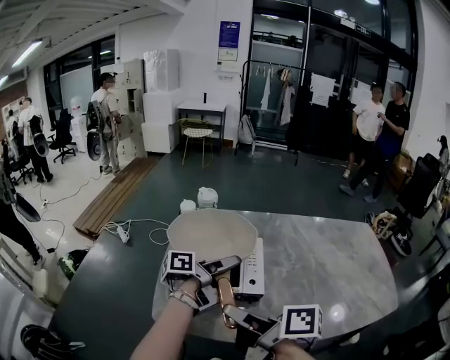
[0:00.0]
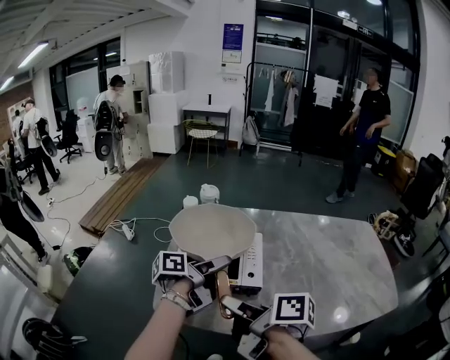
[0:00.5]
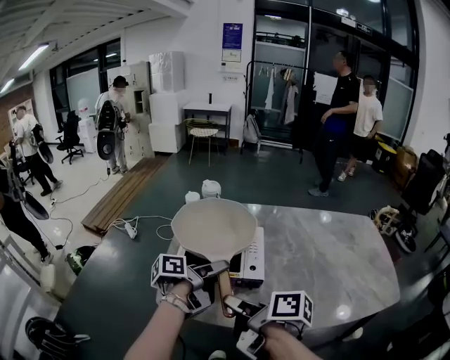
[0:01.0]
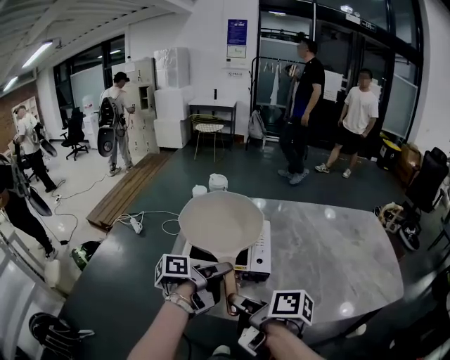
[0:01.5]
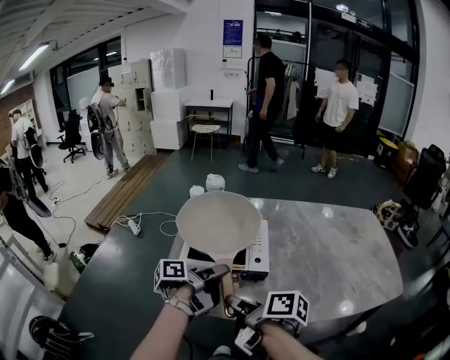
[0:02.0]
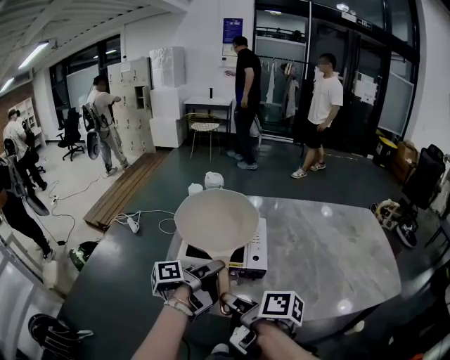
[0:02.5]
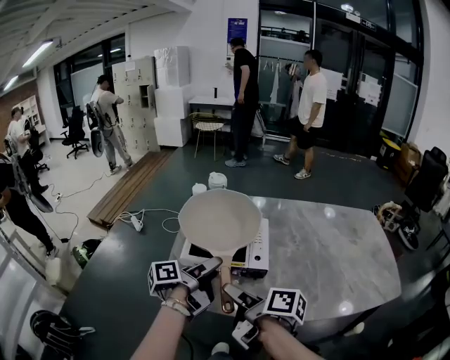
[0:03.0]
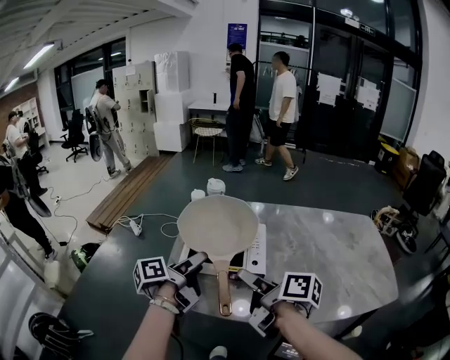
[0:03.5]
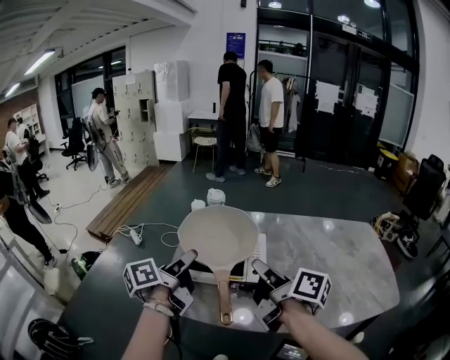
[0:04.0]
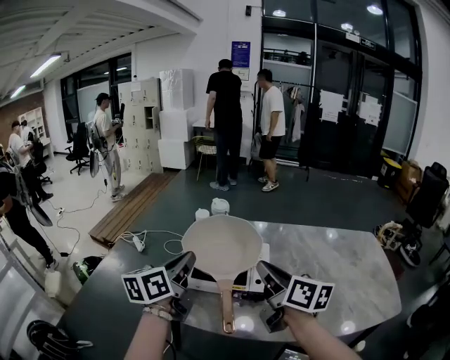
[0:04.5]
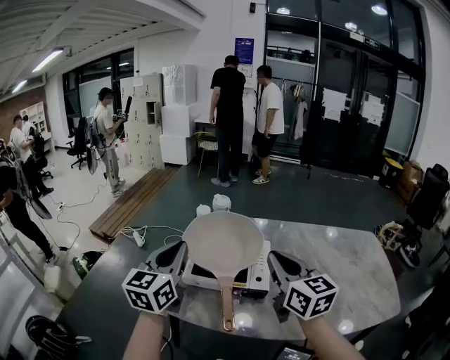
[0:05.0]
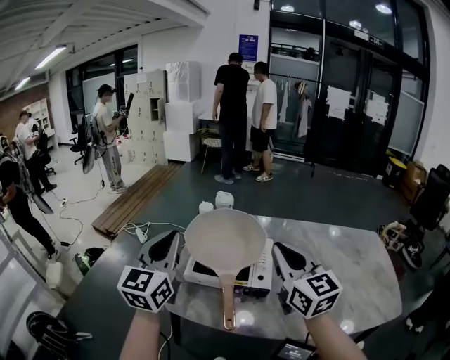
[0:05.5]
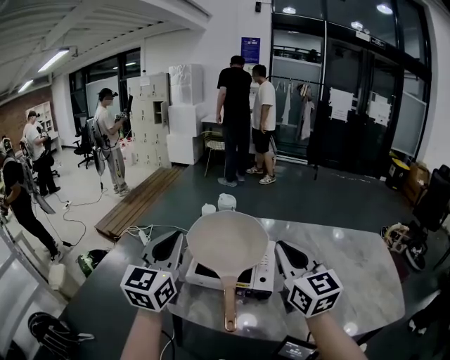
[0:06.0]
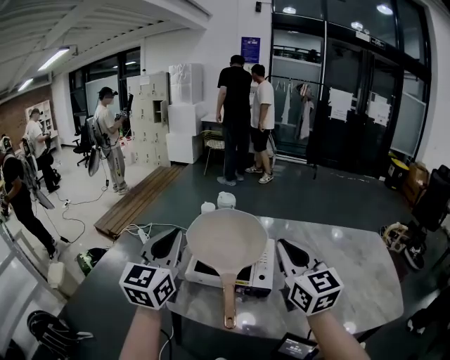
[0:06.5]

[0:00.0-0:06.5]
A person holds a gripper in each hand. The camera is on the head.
0:00.0 to 0:02.0: The right gripper travels downward by about 10 cm.
0:02.0 to 0:04.5: The right gripper moves upward, roughly 15 cm, rotates about 40 degrees, and closes up.
0:04.5 to 0:06.5: The right gripper goes approximately 5 cm upward, and rolls counterclockwise, seen from behind, by about 40 degrees.

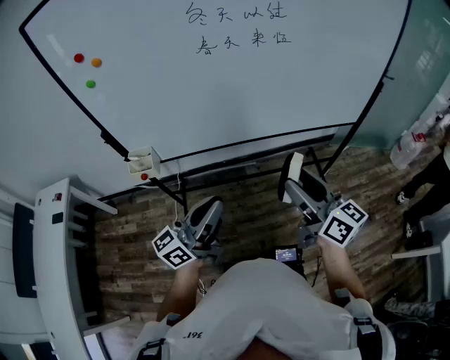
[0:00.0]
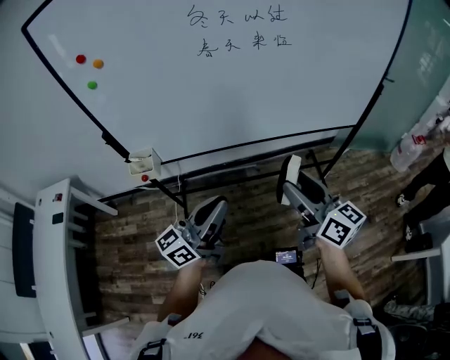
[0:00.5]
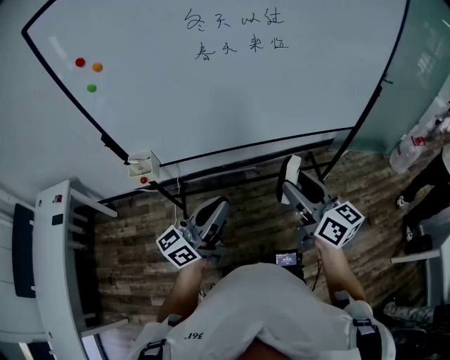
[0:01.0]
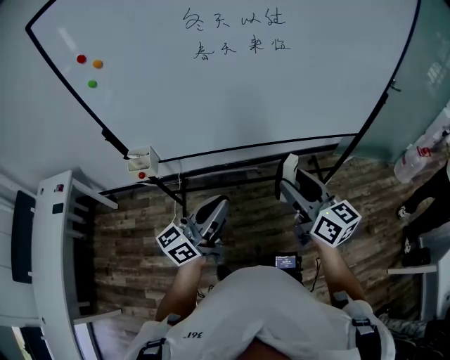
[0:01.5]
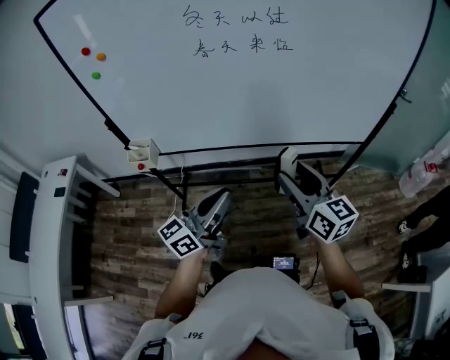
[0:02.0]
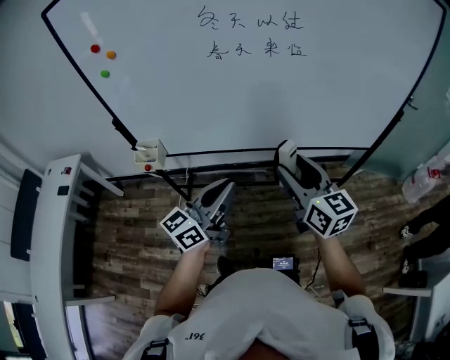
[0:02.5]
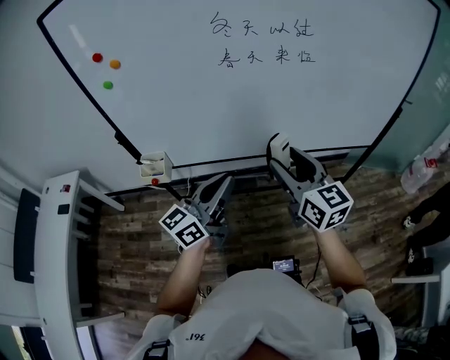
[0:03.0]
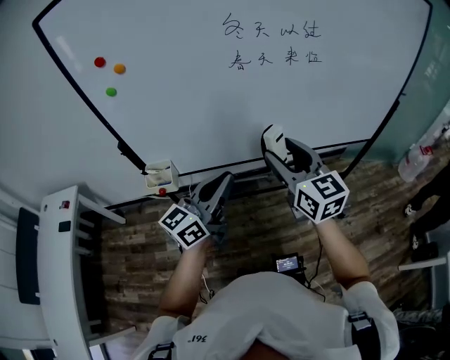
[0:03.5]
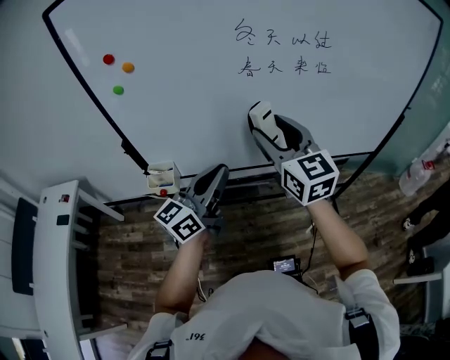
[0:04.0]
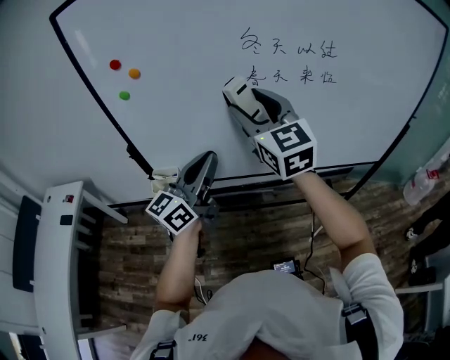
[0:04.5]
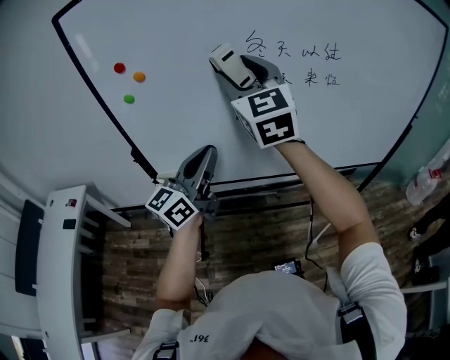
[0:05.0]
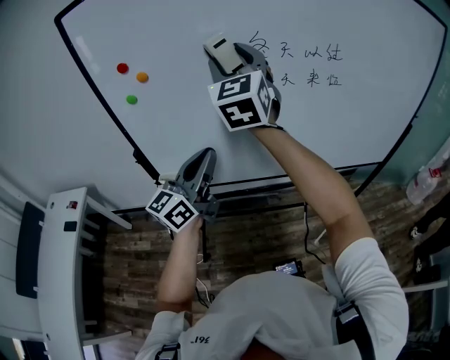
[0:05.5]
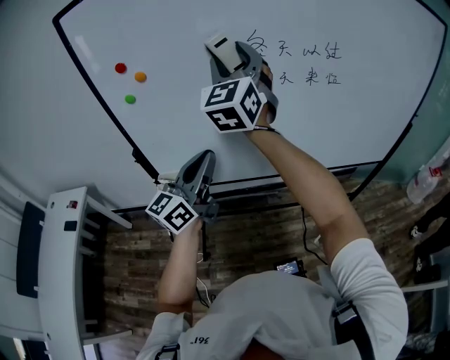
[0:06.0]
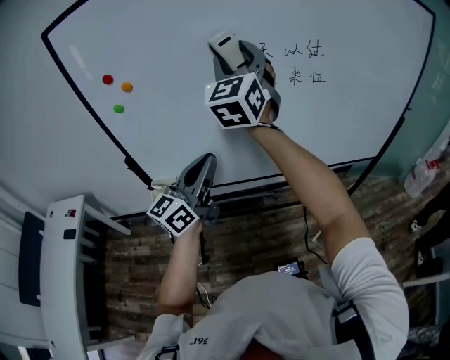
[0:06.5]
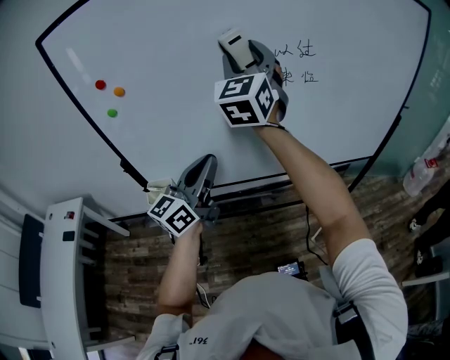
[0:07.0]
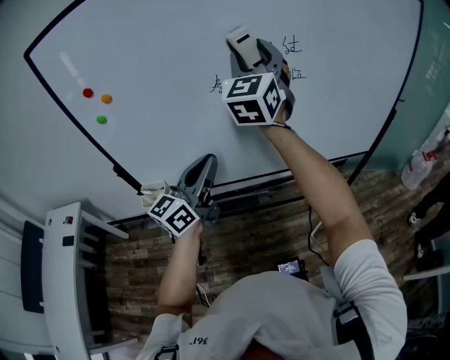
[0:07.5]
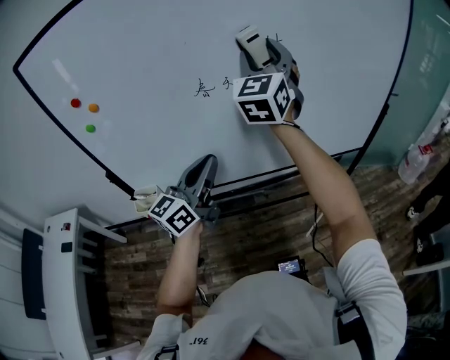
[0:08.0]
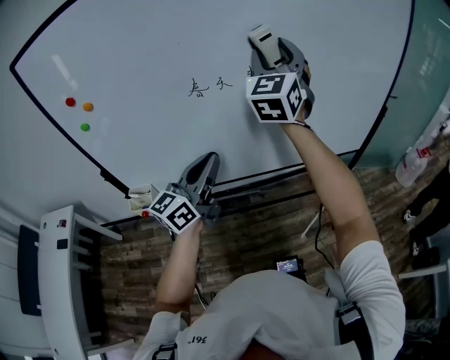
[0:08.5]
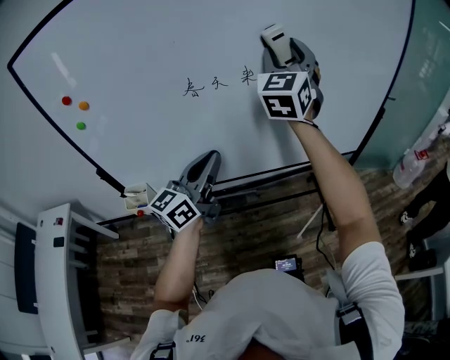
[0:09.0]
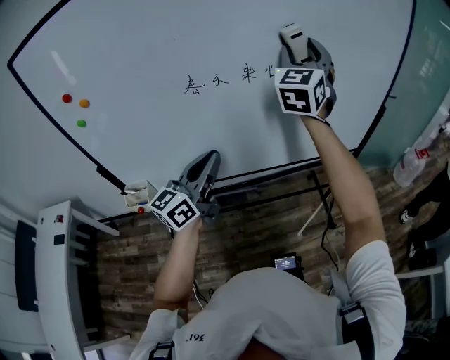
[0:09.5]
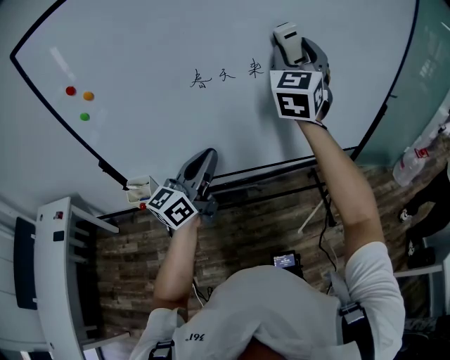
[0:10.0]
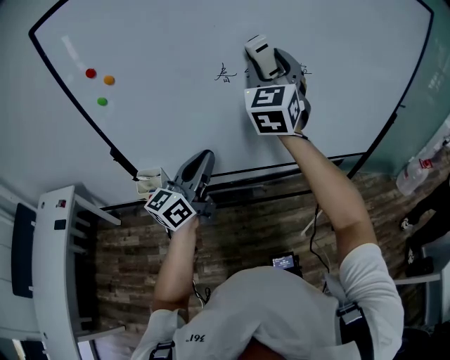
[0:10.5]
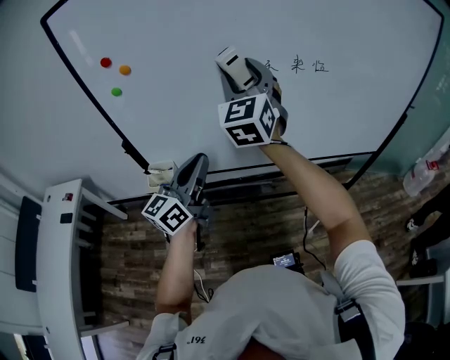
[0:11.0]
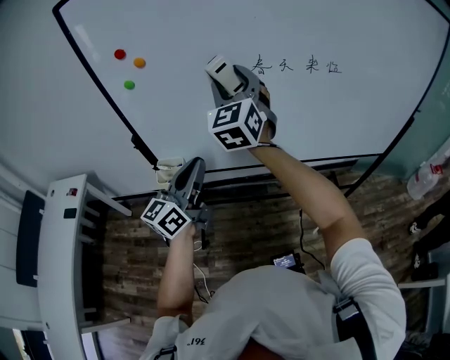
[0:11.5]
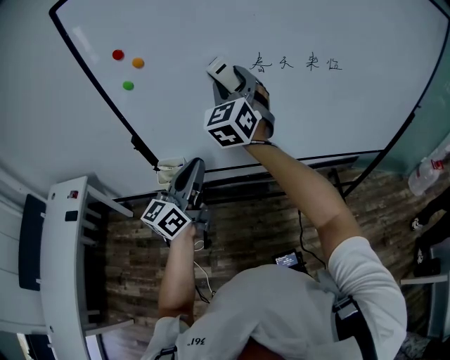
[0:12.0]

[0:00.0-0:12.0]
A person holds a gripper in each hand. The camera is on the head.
0:00.0 to 0:02.0: The right gripper is displaced forward by about 5 cm. Meanwhile the left gripper heads to the right, covering some 10 cm.
0:02.0 to 0:04.0: The right gripper is displaced to the left, upward and forward by some 25 cm, and changes its angle by roughly 20 degrees. Meanwhile the left gripper heads to the left, forward and upward, covering approximately 20 cm.
0:04.0 to 0:06.0: The left gripper goes about 5 cm to the left; the right gripper goes approximately 25 cm upward, to the left and forward, and swivels about 40 degrees.
0:06.0 to 0:08.0: The right gripper is displaced to the right by some 20 cm, while the left gripper goes about 15 cm to the right and forward.
0:08.0 to 0:10.0: The right gripper travels to the right by about 5 cm.
0:10.0 to 0:12.0: The right gripper heads to the left, covering roughly 30 cm, and turns by about 20 degrees; the left gripper goes approximately 20 cm to the left and backward.

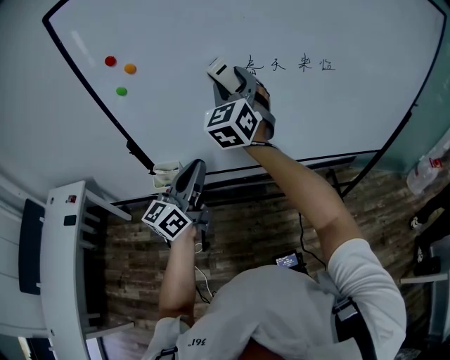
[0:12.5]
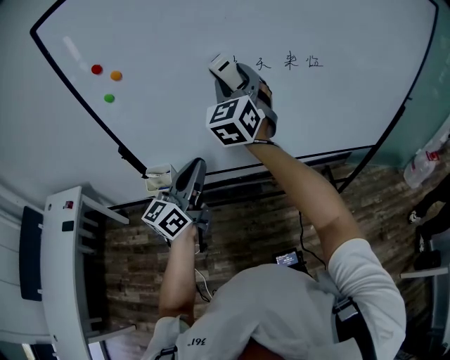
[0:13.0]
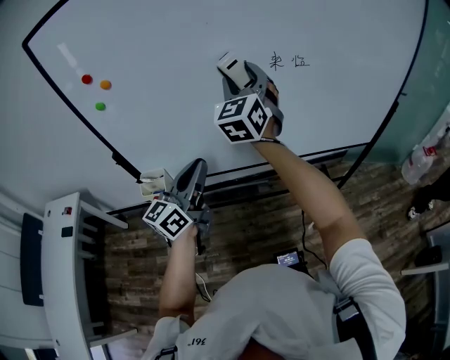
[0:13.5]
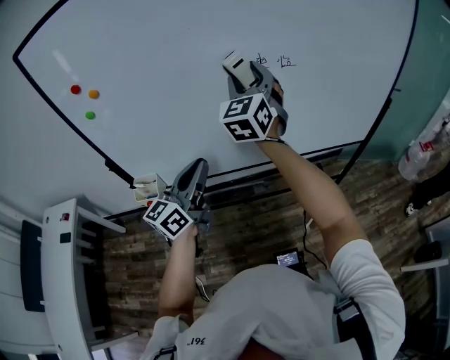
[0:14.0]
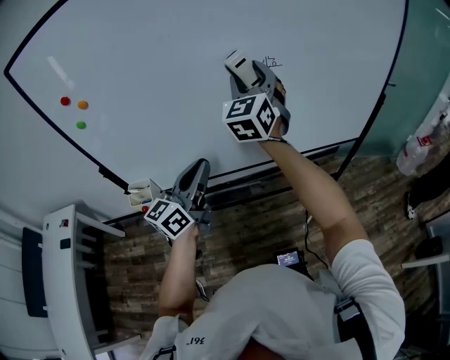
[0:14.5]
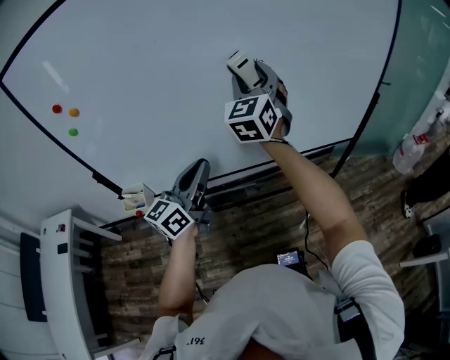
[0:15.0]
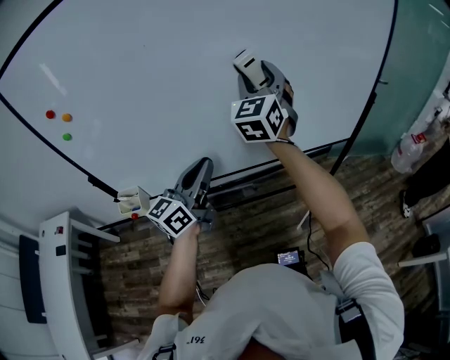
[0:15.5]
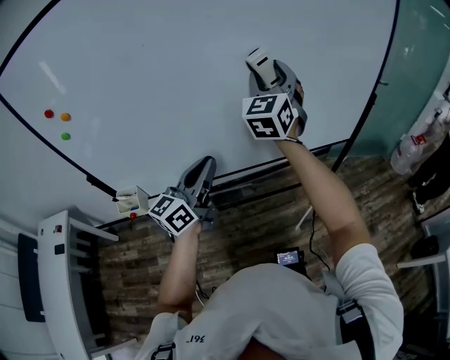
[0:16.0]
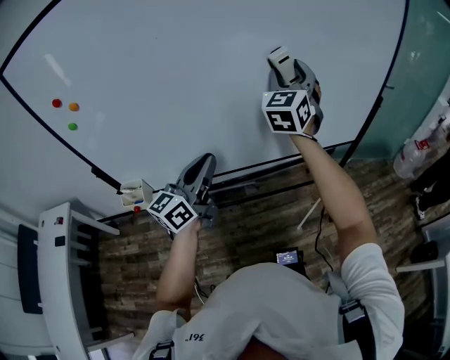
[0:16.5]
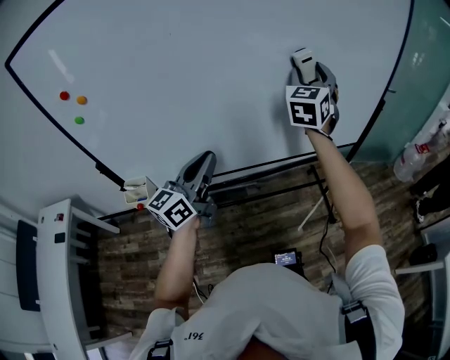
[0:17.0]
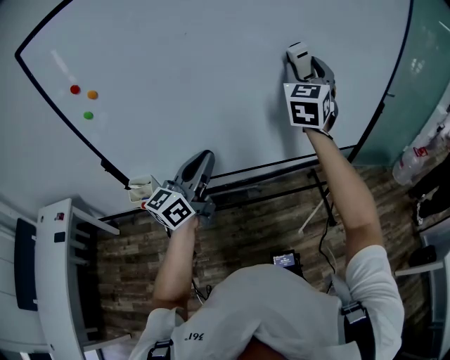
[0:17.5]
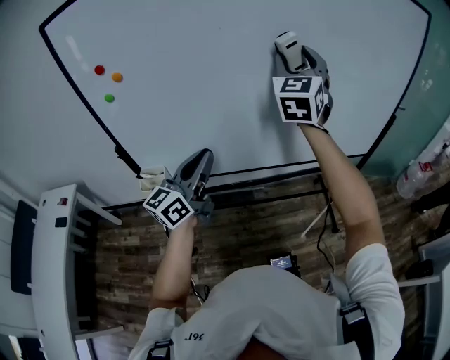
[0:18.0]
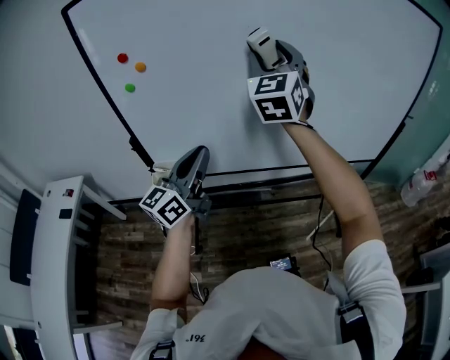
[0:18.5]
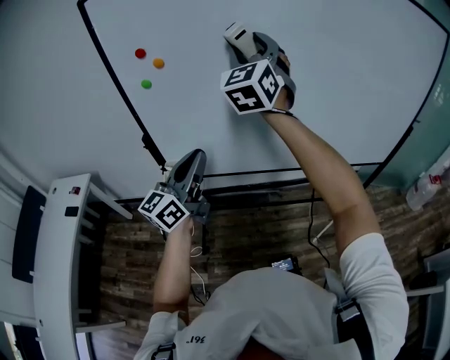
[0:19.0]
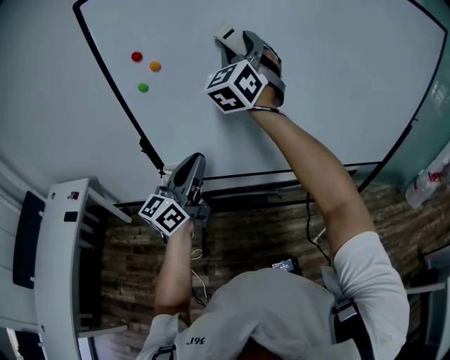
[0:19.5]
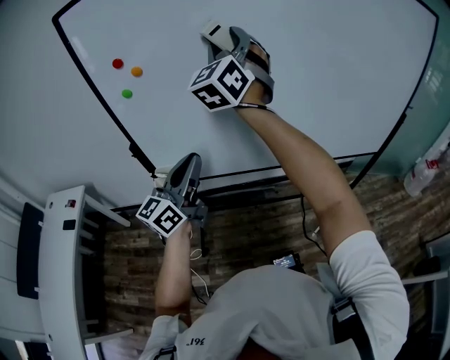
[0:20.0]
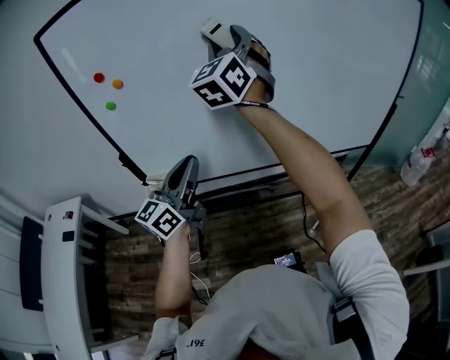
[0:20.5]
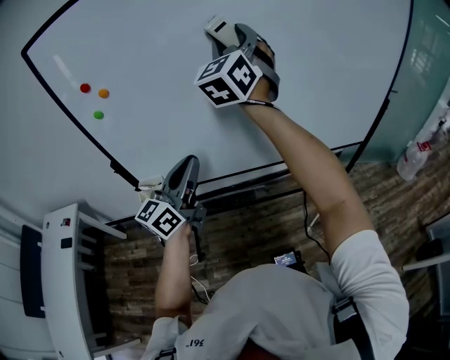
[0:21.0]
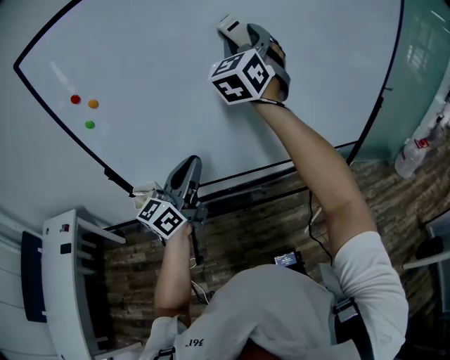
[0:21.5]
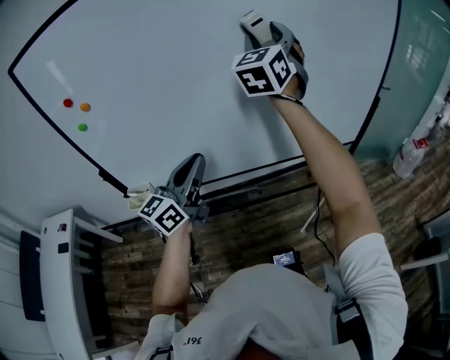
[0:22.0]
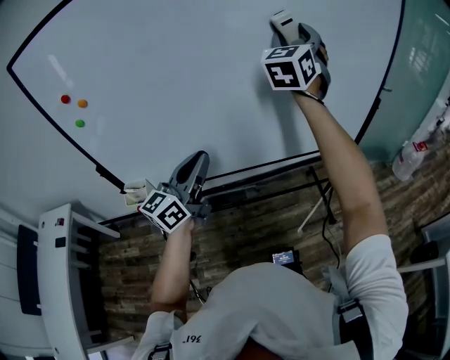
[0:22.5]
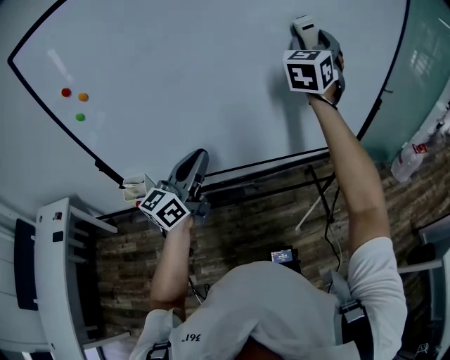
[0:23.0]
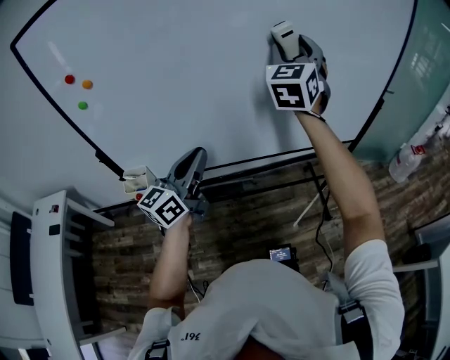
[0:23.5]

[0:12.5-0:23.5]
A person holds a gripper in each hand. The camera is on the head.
0:12.5 to 0:14.5: The left gripper goes about 15 cm to the right and forward, while the right gripper heads to the right, covering roughly 20 cm.
0:14.5 to 0:16.0: Both grippers move to the right and forward, approximately 10 cm.
0:16.0 to 0:18.0: The left gripper travels to the left and backward by about 15 cm; the right gripper shifts approximately 15 cm upward, backward and to the left.
0:18.0 to 0:20.0: The right gripper moves to the left, approximately 20 cm; the left gripper moves to the left, some 10 cm.
0:20.0 to 0:21.5: The right gripper travels to the right and forward by some 20 cm, while the left gripper travels to the right and forward by about 10 cm.
0:21.5 to 0:23.5: The right gripper travels to the right and downward by approximately 10 cm.
